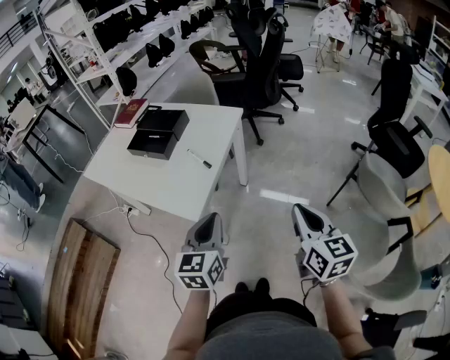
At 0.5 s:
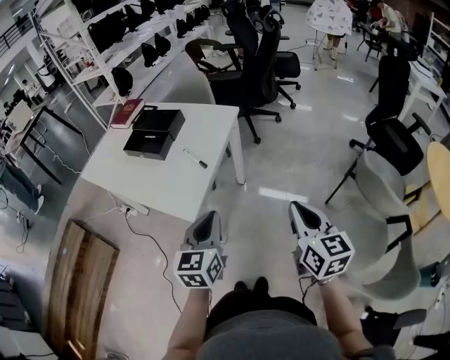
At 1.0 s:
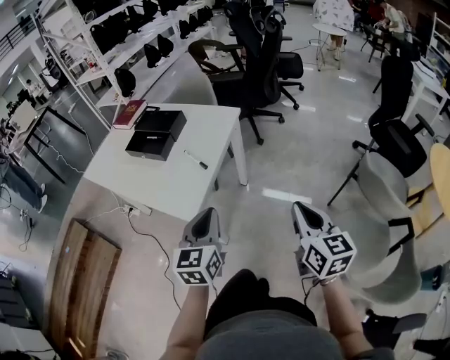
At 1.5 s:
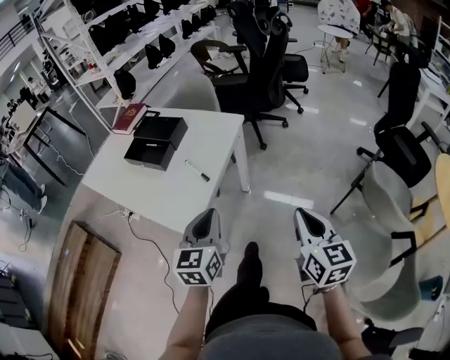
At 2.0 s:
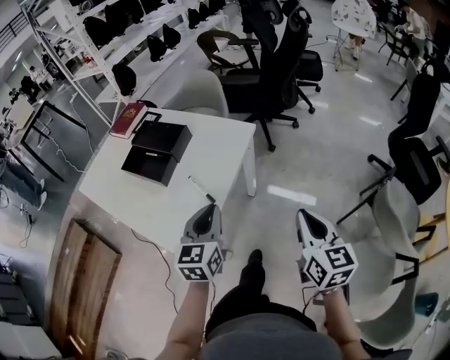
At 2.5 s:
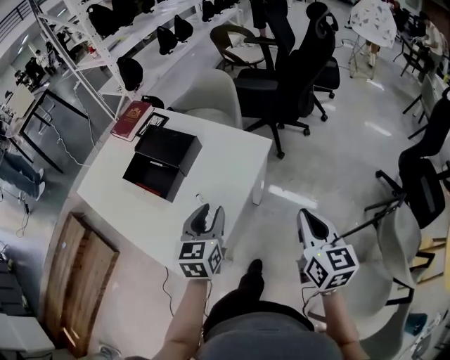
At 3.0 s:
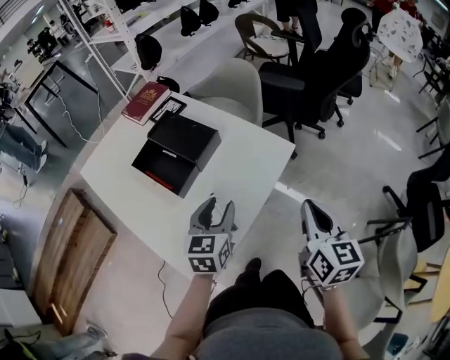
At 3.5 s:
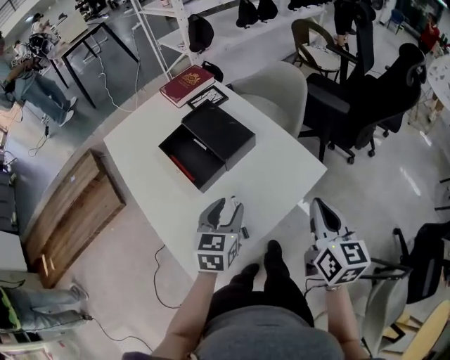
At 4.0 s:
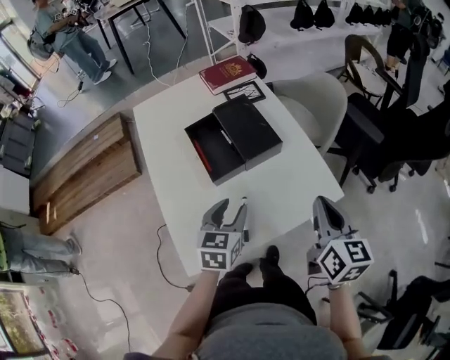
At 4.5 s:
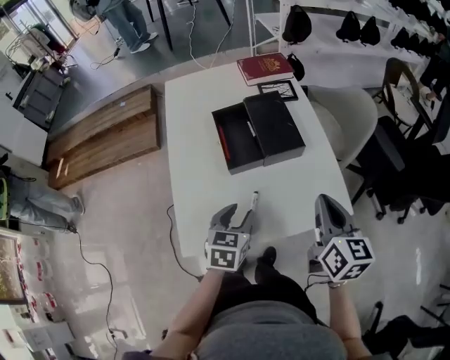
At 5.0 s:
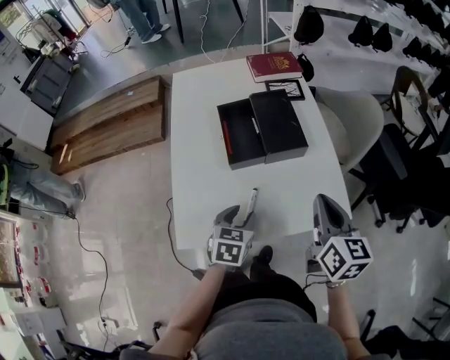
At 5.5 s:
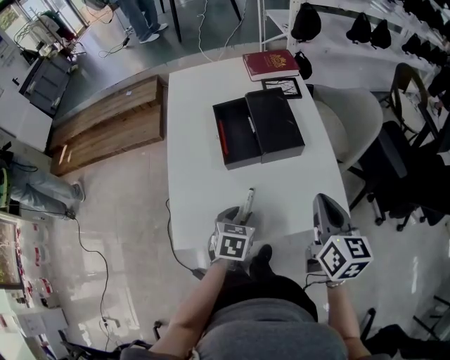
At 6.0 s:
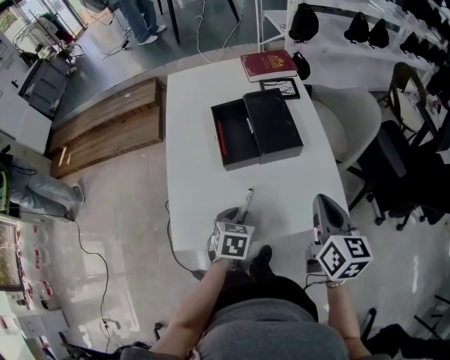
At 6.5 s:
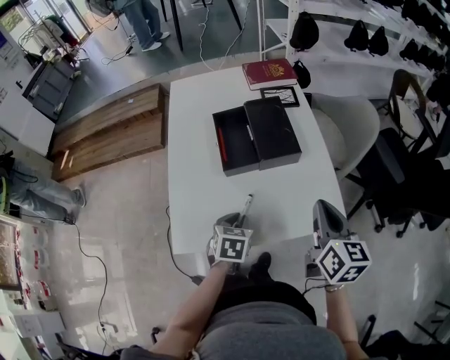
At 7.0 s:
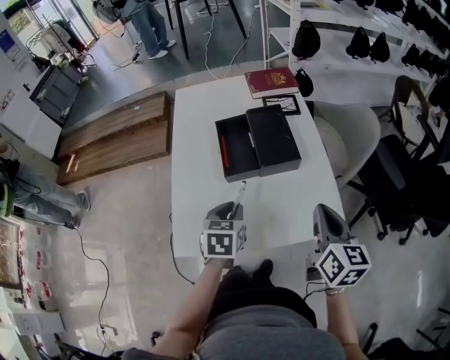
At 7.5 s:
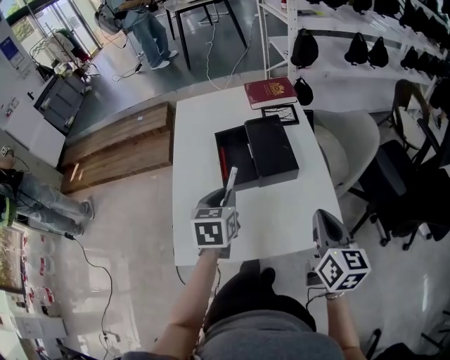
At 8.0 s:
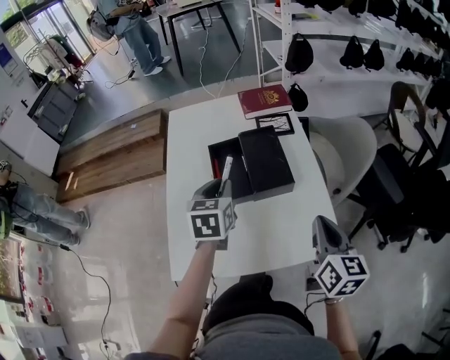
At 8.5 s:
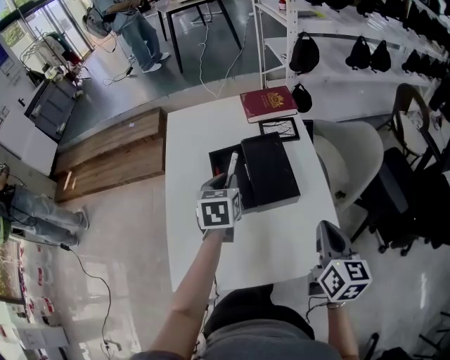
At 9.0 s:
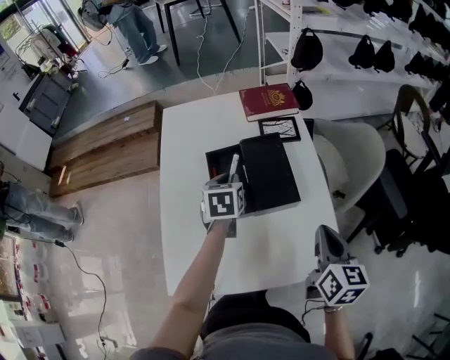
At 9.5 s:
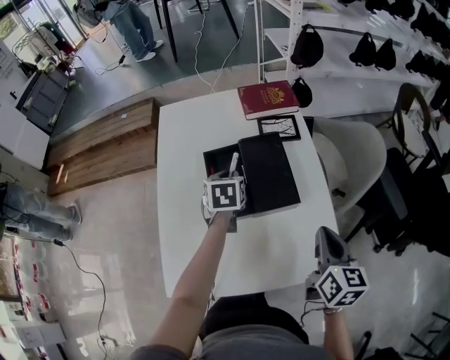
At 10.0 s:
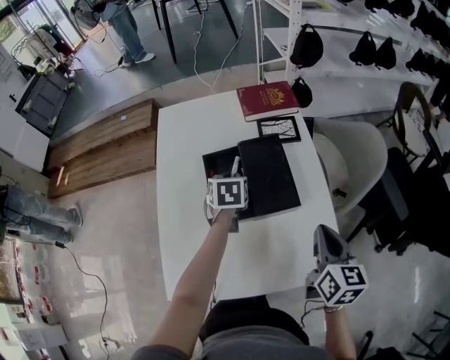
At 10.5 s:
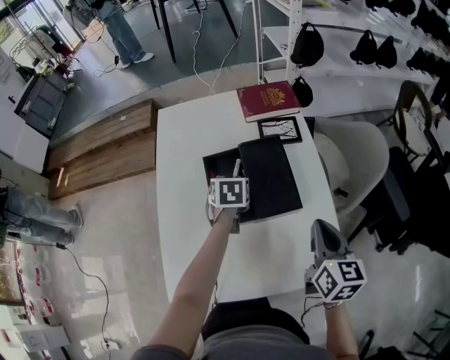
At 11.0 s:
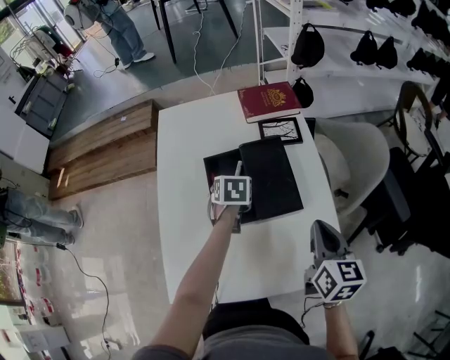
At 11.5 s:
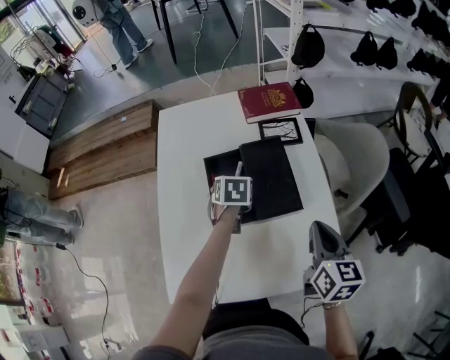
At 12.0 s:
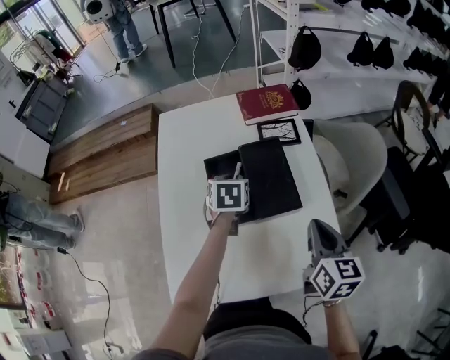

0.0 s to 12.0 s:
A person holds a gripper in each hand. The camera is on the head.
0.0 to 2.0 s: Both grippers travel together forward, about 20 cm.
2.0 to 4.0 s: The right gripper moves roughly 35 cm, and rotates roughly 40 degrees; the left gripper ends up roughly 20 cm from where it was, swivels approximately 40 degrees, and opens.
4.0 to 6.0 s: The left gripper travels downward by some 10 cm, and changes its angle by some 30 degrees, while the right gripper moves about 5 cm.
6.0 to 8.0 s: The left gripper moves upward and forward, some 25 cm, and rotates some 20 degrees.
8.0 to 10.0 s: The left gripper is displaced downward and forward by some 15 cm. Meanwhile the right gripper goes roughly 5 cm forward.
10.0 to 12.0 s: The grippers move only a little.

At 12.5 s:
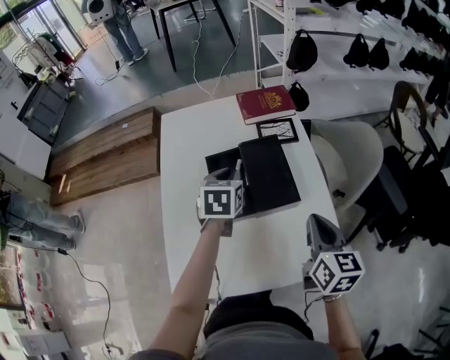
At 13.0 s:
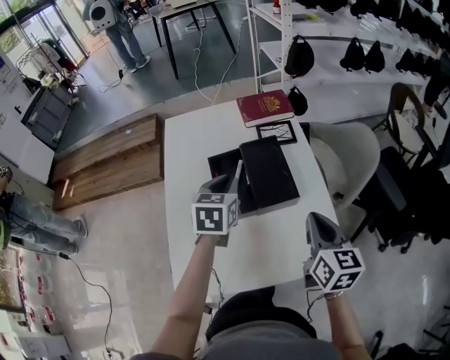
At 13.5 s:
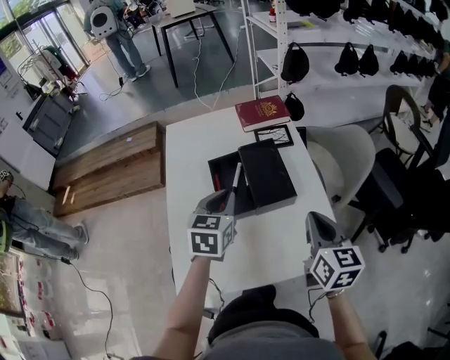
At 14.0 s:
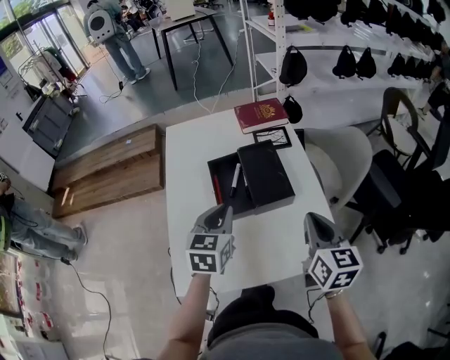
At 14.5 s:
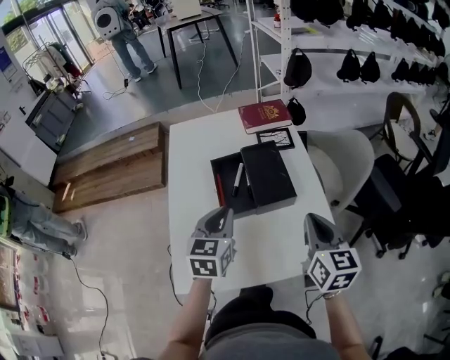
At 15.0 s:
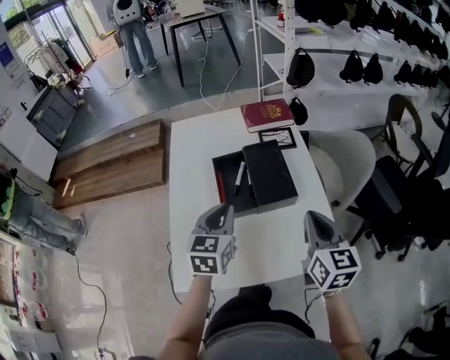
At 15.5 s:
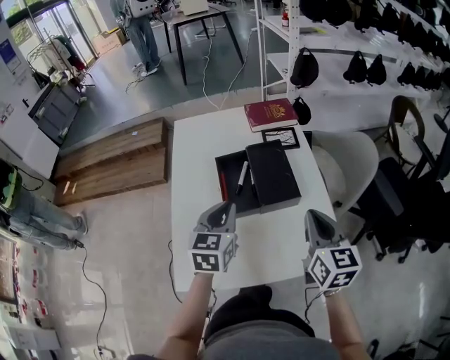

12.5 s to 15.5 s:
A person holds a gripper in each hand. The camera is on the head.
12.5 to 14.0 s: The left gripper heads backward, covering about 15 cm.
14.0 to 15.5 s: The grippers move only a little.

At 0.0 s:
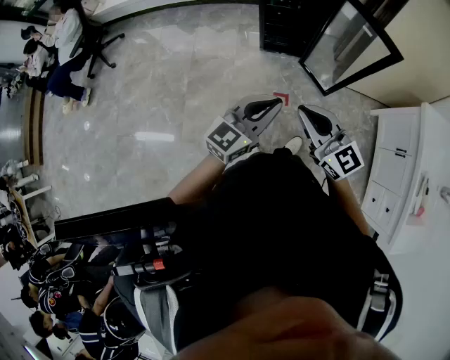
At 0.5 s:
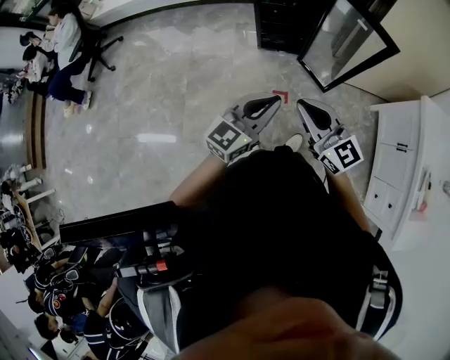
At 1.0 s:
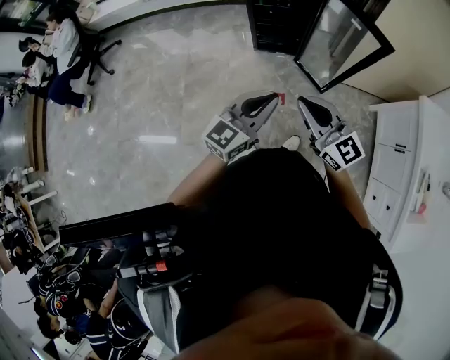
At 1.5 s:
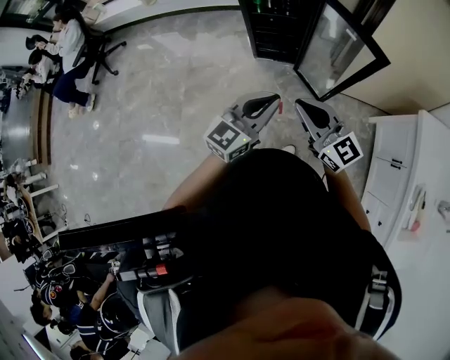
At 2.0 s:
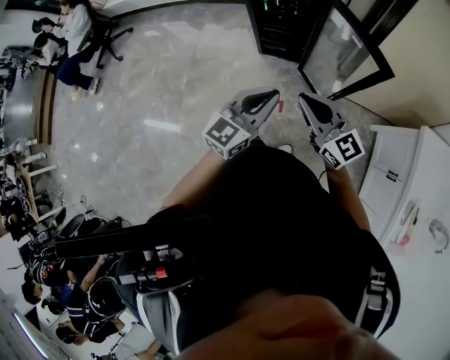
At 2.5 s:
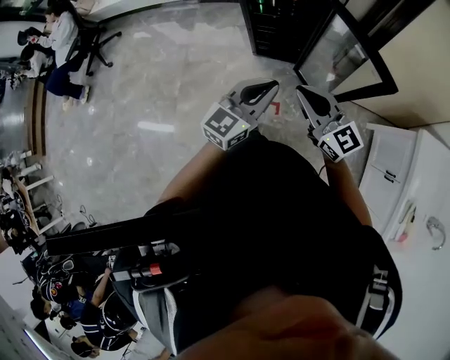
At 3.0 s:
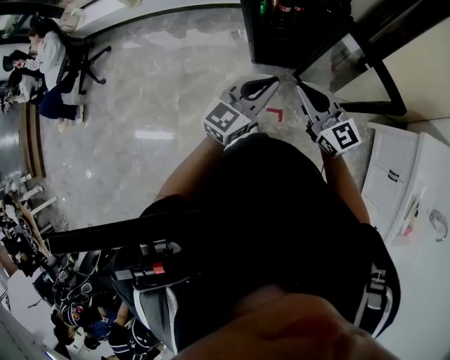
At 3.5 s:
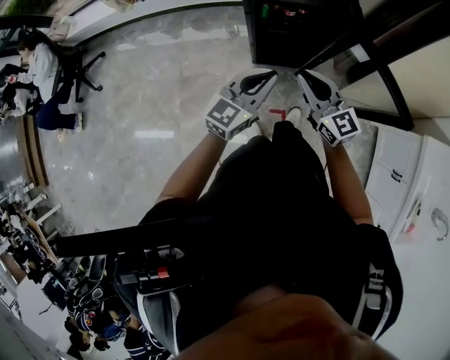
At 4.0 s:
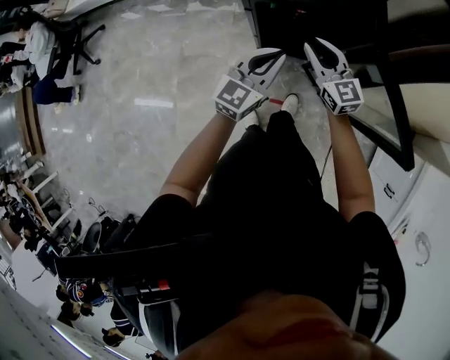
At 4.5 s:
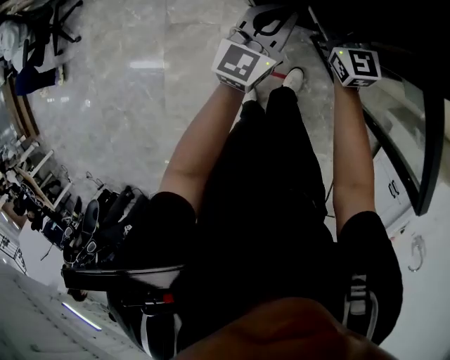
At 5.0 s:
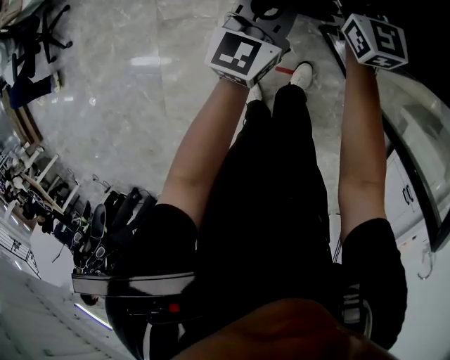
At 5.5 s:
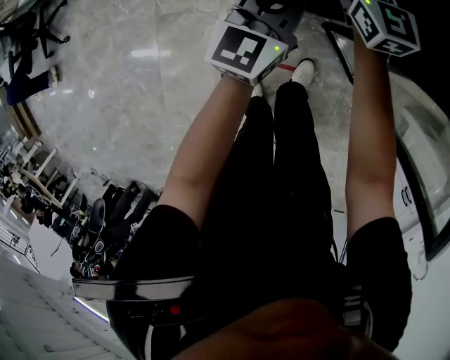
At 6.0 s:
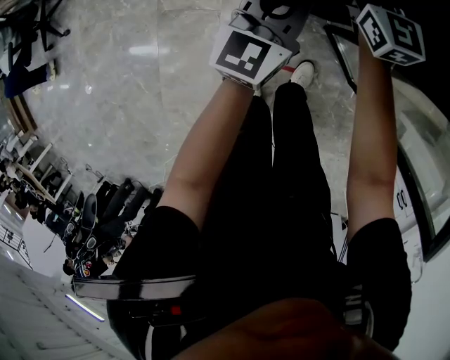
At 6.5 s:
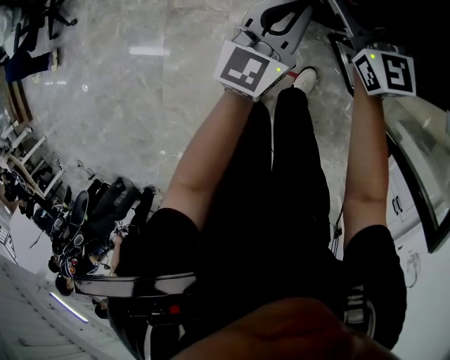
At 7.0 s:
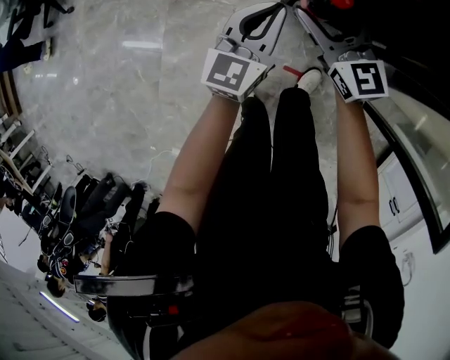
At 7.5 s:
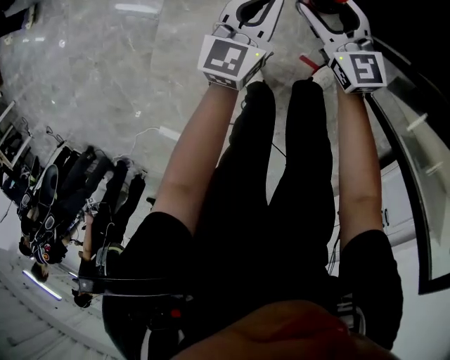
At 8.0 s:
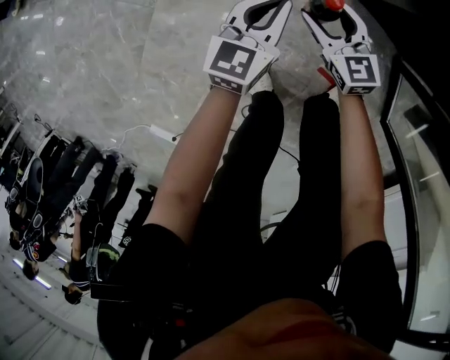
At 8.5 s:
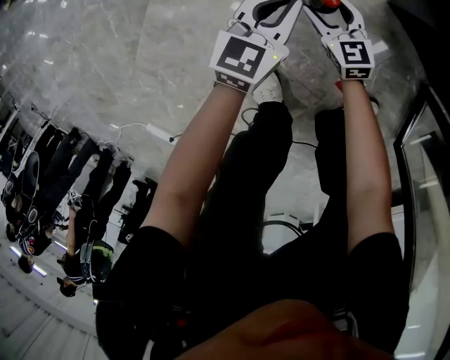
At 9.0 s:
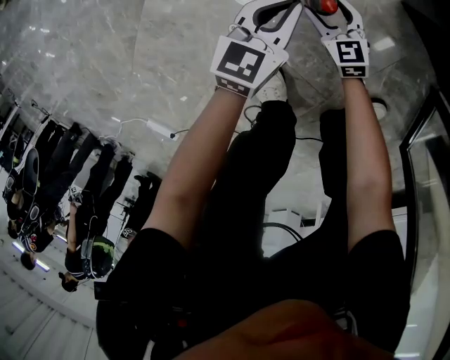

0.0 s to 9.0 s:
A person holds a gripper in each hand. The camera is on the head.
0.0 to 2.0 s: The right gripper shifts about 20 cm forward and to the right; the left gripper heads to the right and forward, covering some 15 cm.
2.0 to 4.5 s: The pair of grippers is taken forward, roughly 50 cm. Both grippers move downward, approximately 25 cm. The right gripper rotates roughly 20 degrees, and opens its fingers.
4.5 to 7.0 s: The left gripper moves to the left, downward and backward, approximately 20 cm, while the right gripper goes about 20 cm to the left, backward and downward.
7.0 to 9.0 s: The left gripper heads downward and to the left, covering roughly 60 cm, and changes its angle by some 30 degrees; the right gripper shifts some 60 cm downward, and turns by approximately 30 degrees.

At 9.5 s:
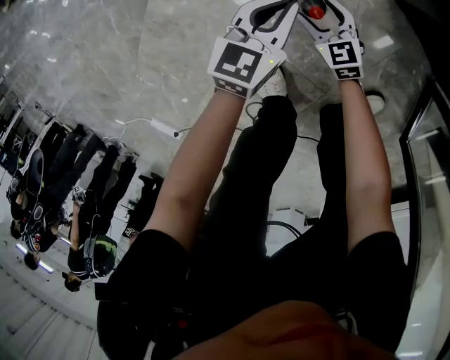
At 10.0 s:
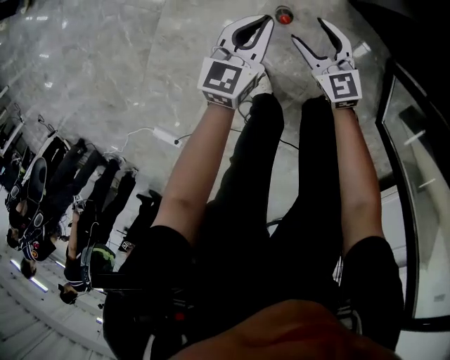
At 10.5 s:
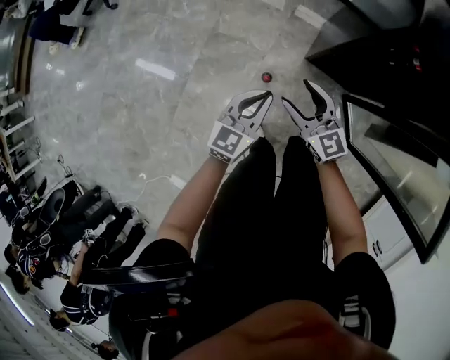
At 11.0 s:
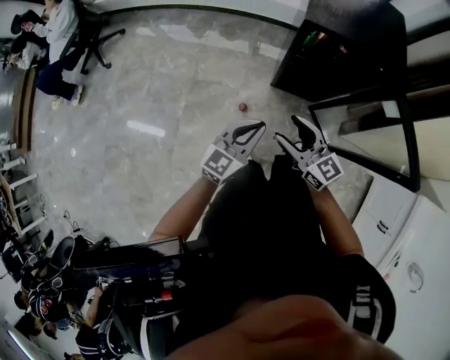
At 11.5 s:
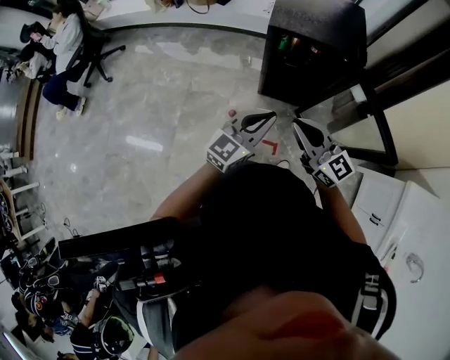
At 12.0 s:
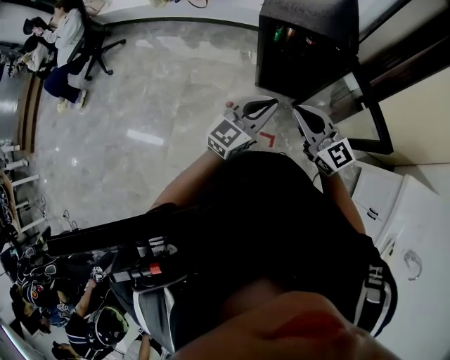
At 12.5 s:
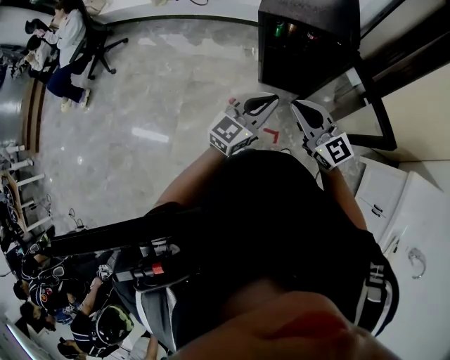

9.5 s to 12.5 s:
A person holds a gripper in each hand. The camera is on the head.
9.5 to 11.0 s: The grippers both shift upward by approximately 70 cm. The right gripper angles its fingers upward, by about 30 degrees, while the left gripper rotates some 40 degrees.
11.0 to 12.5 s: The left gripper travels to the right and upward by approximately 20 cm; the right gripper shifts approximately 20 cm upward and to the right, and closes up.
